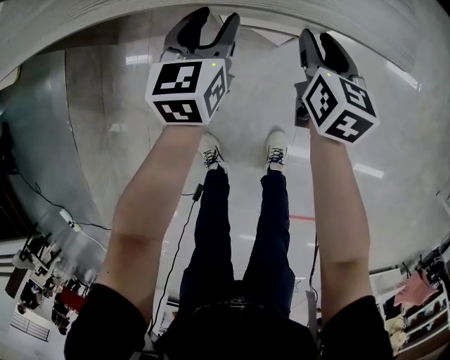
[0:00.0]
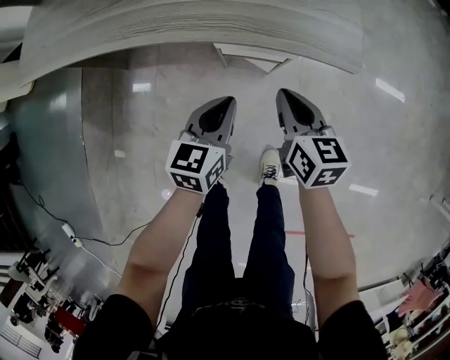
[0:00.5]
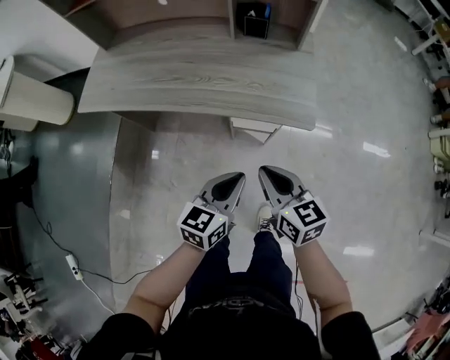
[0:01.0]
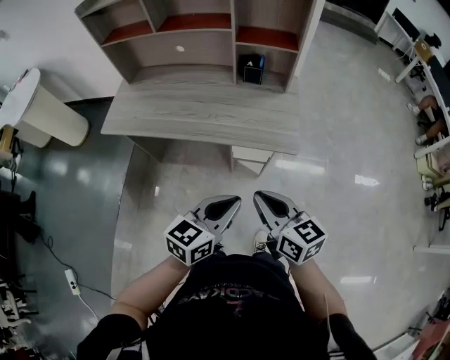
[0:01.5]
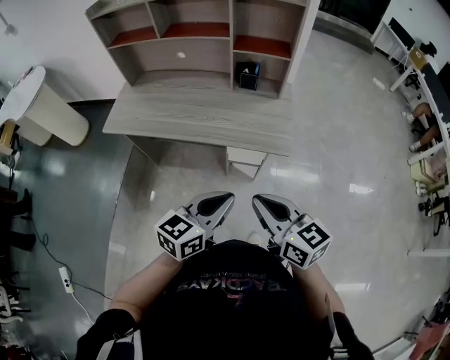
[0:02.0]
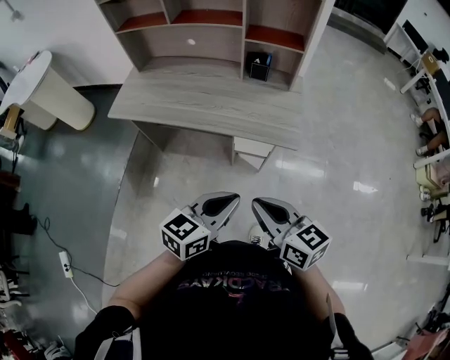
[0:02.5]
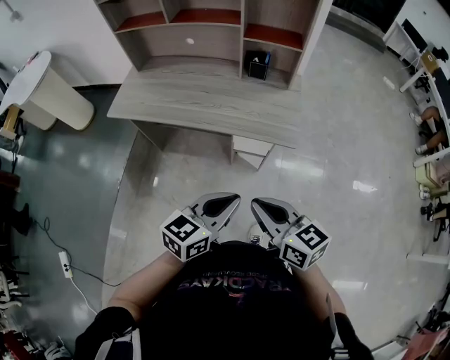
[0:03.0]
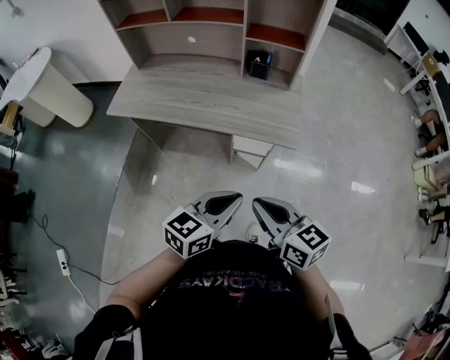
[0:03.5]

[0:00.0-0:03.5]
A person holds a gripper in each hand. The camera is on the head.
0:00.0 to 0:02.0: Both grippers move upward and backward, roughly 35 cm. The right gripper swivels approximately 40 degrees, and closes up. Meanwhile the left gripper swivels approximately 30 degrees, and closes.
0:02.0 to 0:03.5: The grippers make only small movements.

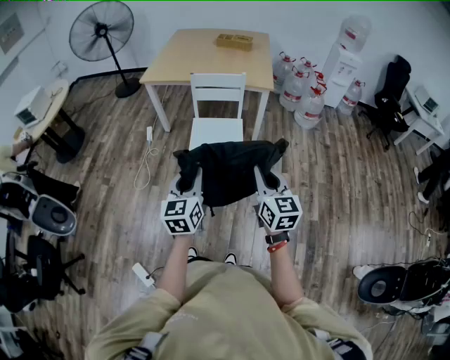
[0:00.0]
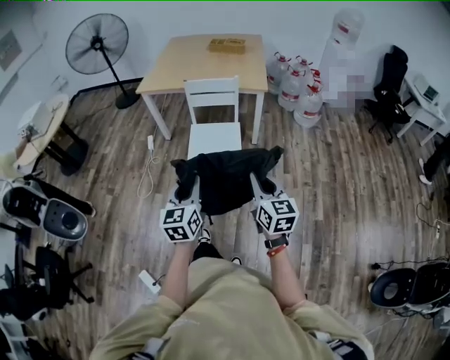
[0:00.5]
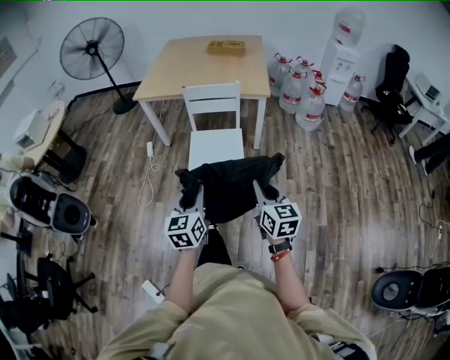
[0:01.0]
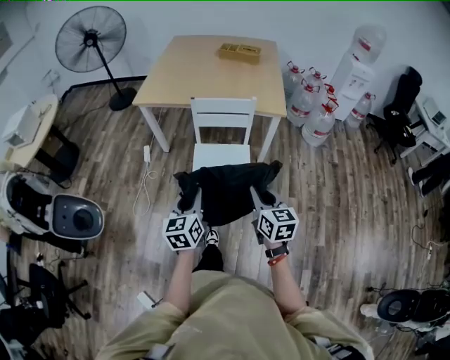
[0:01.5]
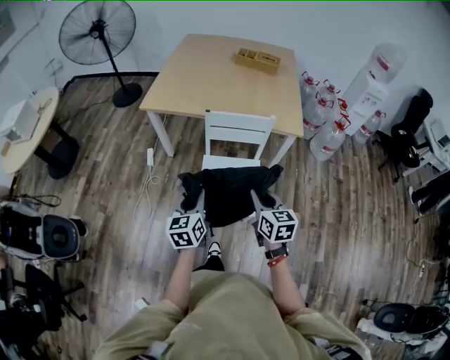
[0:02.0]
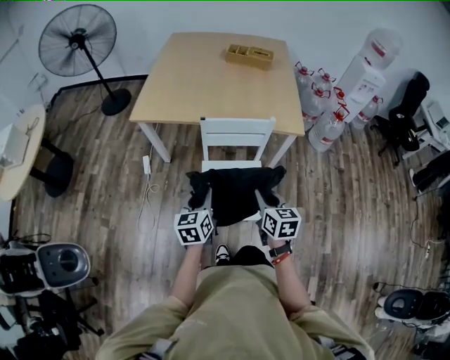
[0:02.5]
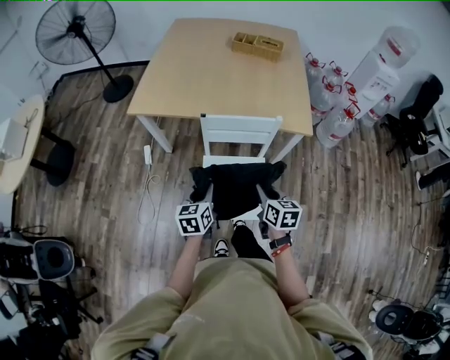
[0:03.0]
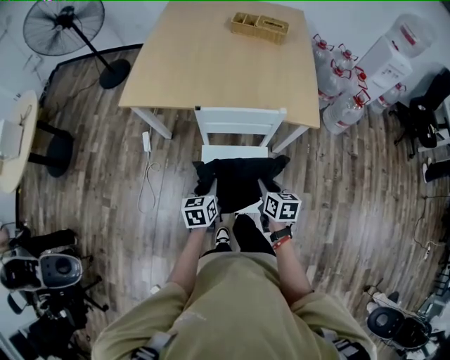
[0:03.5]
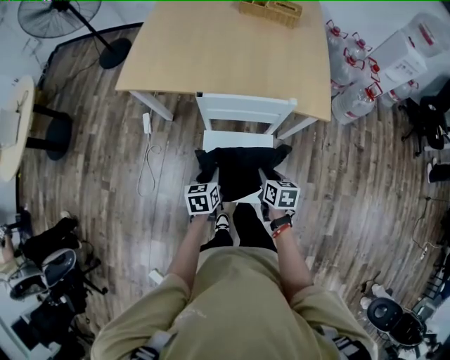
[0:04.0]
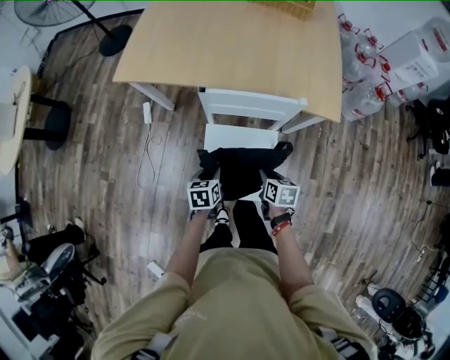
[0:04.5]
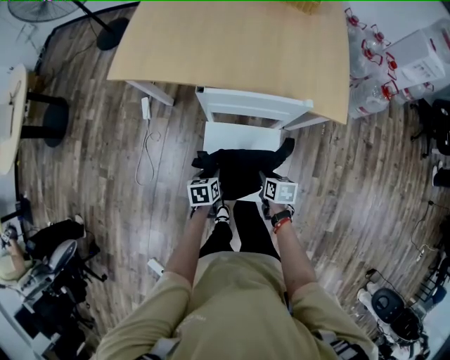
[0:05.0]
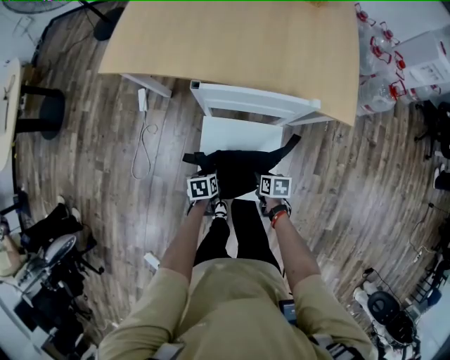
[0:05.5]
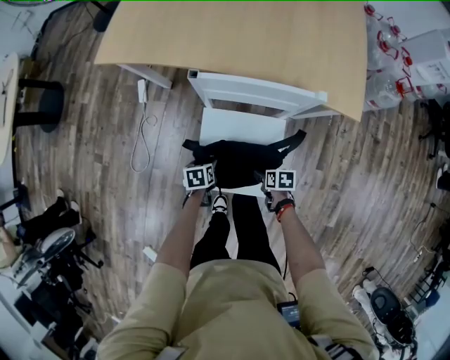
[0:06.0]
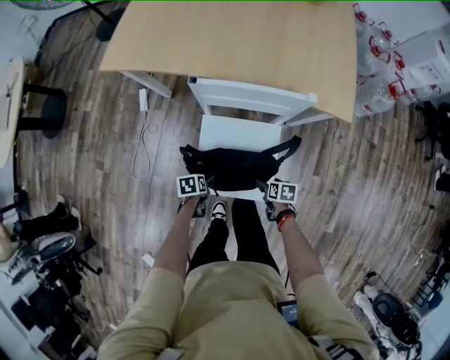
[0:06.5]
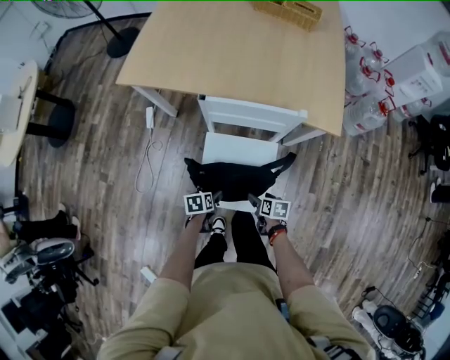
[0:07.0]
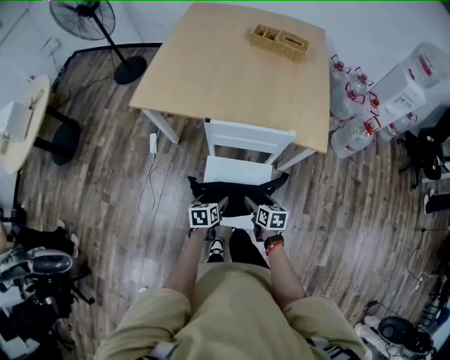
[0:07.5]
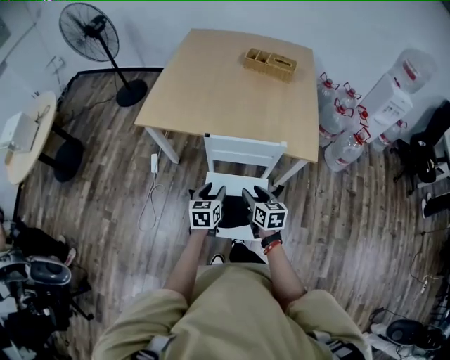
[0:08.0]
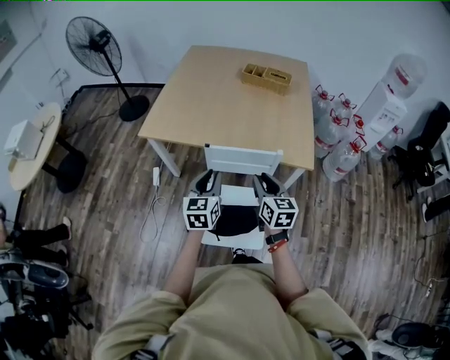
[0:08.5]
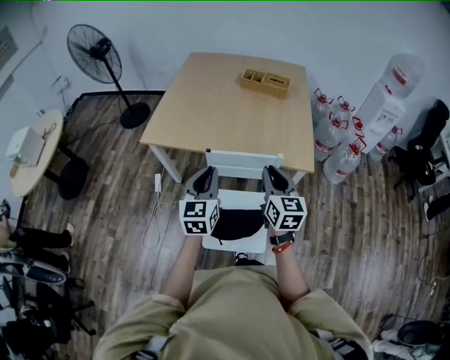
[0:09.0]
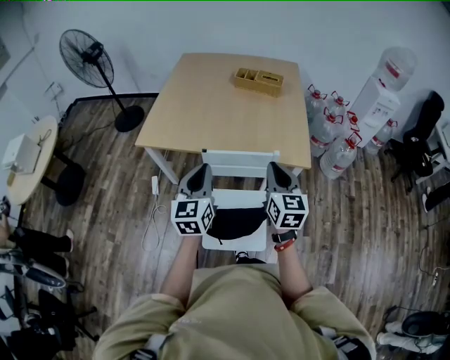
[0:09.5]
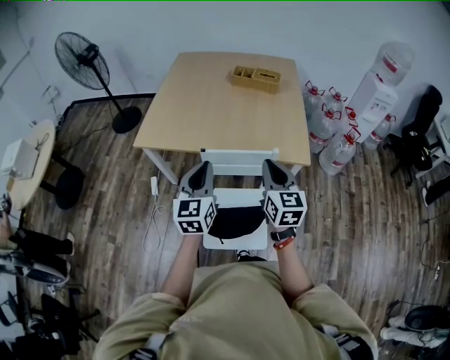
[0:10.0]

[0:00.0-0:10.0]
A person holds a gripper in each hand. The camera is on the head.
0:00.0 to 0:02.0: Both grippers move forward, about 35 cm.
0:02.0 to 0:04.0: The right gripper heads downward and forward, covering approximately 30 cm, and turns by some 30 degrees, while the left gripper is displaced forward and downward by about 30 cm, and swivels about 30 degrees.
0:04.0 to 0:06.0: The two grippers go approximately 25 cm downward. The right gripper changes its angle by approximately 30 degrees, and opens up. The left gripper swivels some 30 degrees, and opens.
0:06.0 to 0:08.0: Both grippers move upward, approximately 30 cm. The left gripper tips its fingers upward by roughly 40 degrees, and opens, then closes again. Meanwhile the right gripper angles its fingers upward, by approximately 30 degrees.
0:08.0 to 0:10.0: Both grippers move upward, about 25 cm. The left gripper changes its angle by roughly 30 degrees, and closes its fingers. Meanwhile the right gripper rotates some 30 degrees, and closes its fingers.

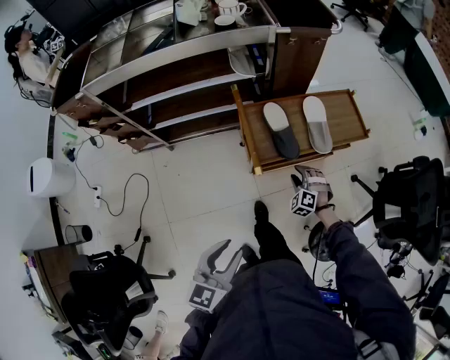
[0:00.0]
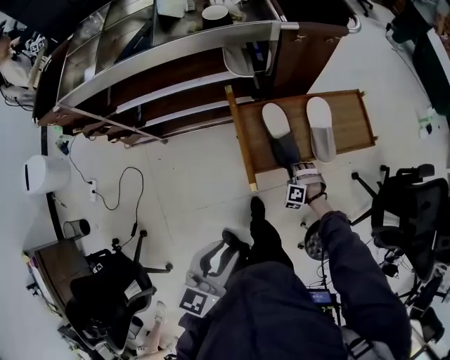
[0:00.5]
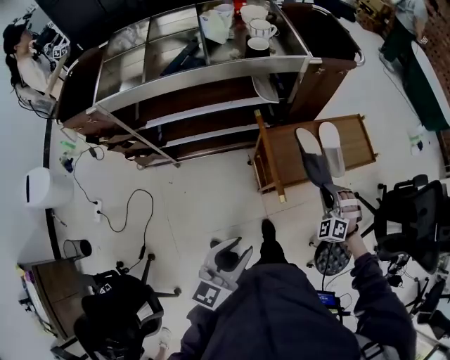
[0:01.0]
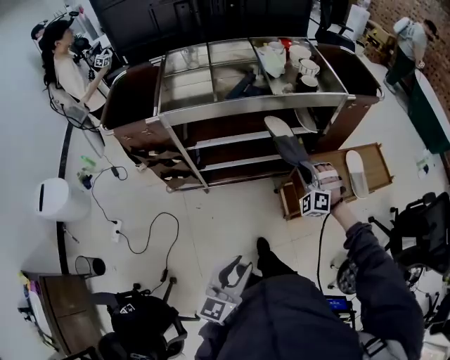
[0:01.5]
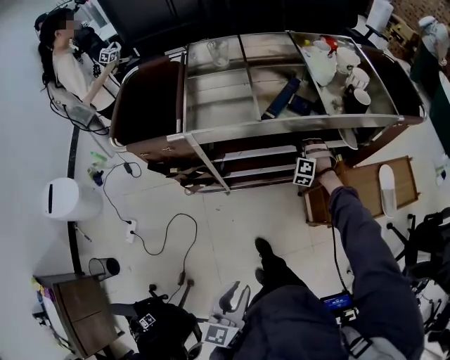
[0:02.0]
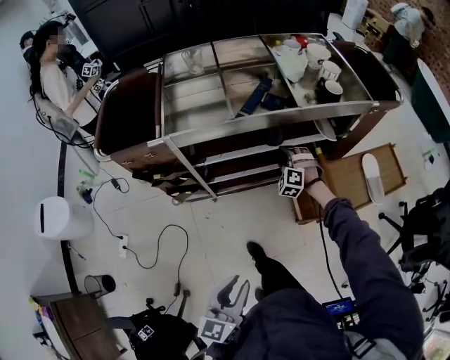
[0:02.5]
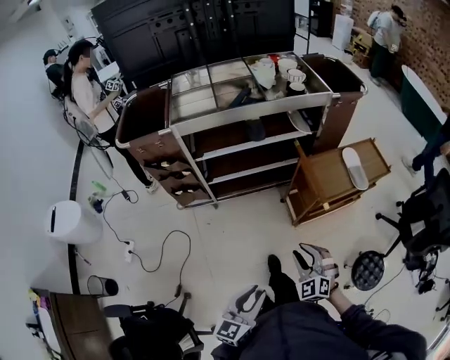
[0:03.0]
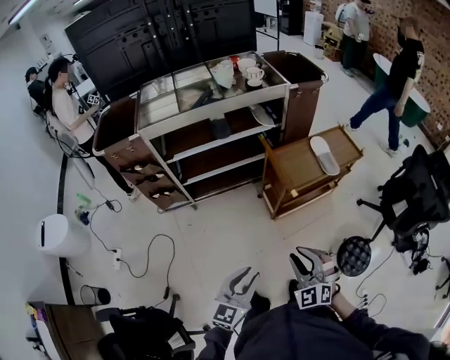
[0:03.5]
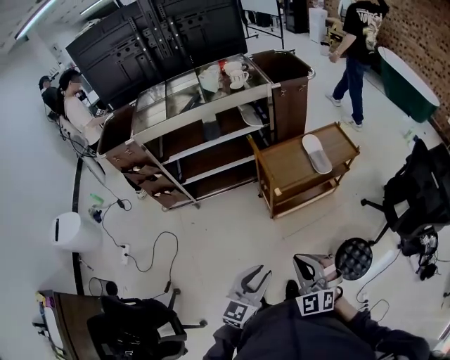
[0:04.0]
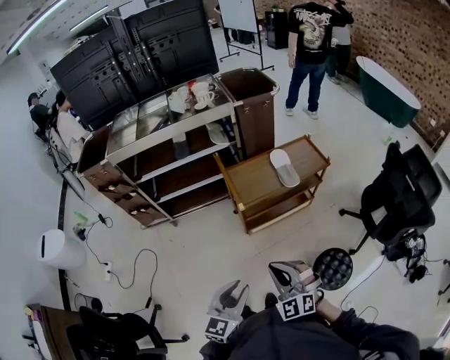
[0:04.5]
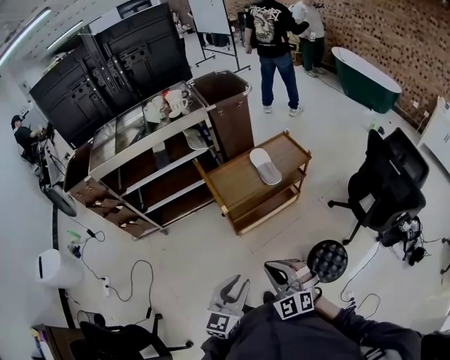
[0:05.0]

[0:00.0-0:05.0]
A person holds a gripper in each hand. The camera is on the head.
0:00.0 to 0:02.5: The two grippers travel together, to the left, some 50 cm. The right gripper closes and opens again.
0:02.5 to 0:05.0: The pair of grippers is taken to the right and backward, roughly 60 cm. The right gripper swivels some 40 degrees, and closes its fingers, while the left gripper rotates about 30 degrees.

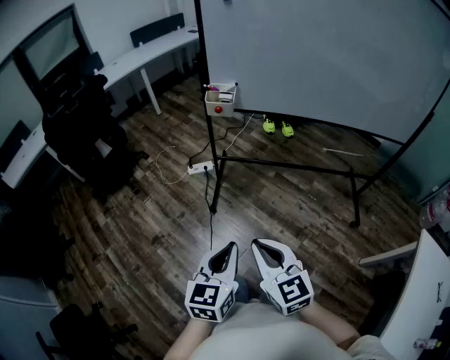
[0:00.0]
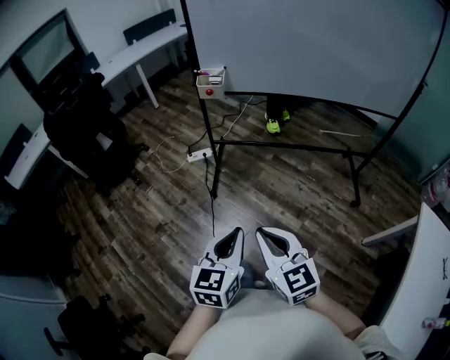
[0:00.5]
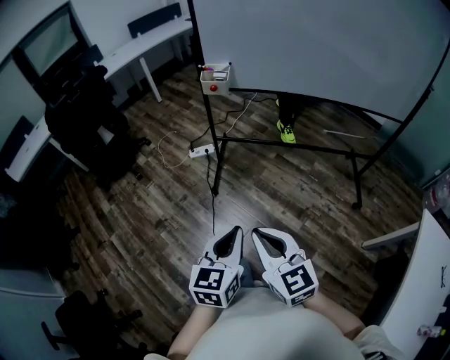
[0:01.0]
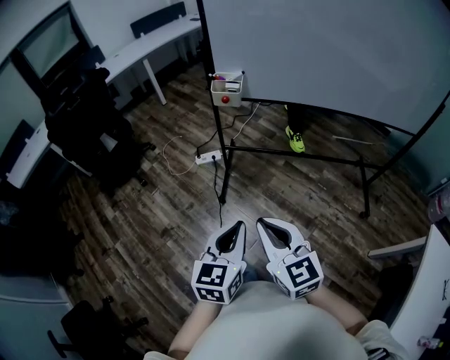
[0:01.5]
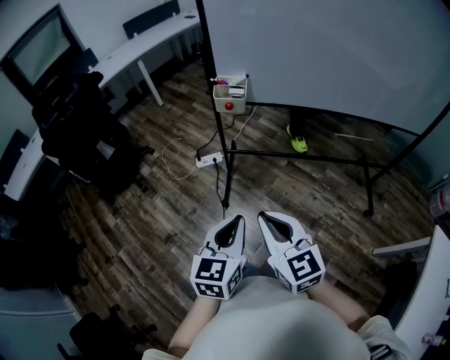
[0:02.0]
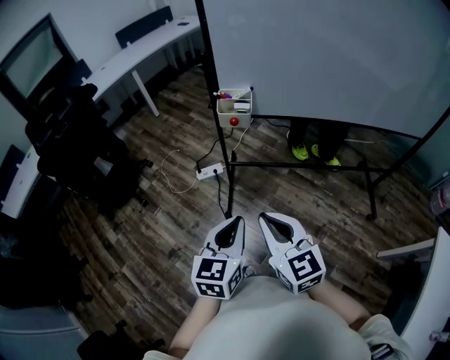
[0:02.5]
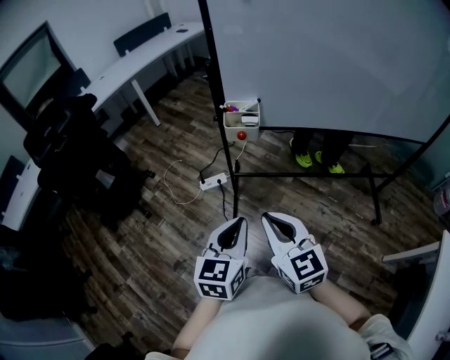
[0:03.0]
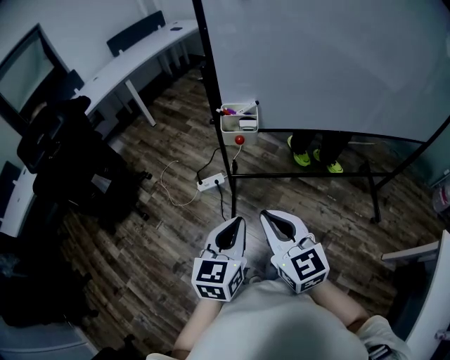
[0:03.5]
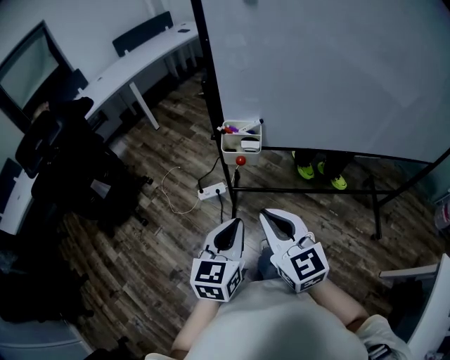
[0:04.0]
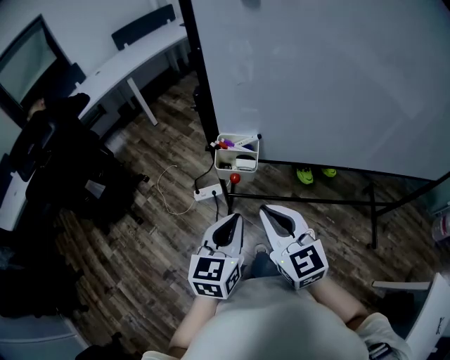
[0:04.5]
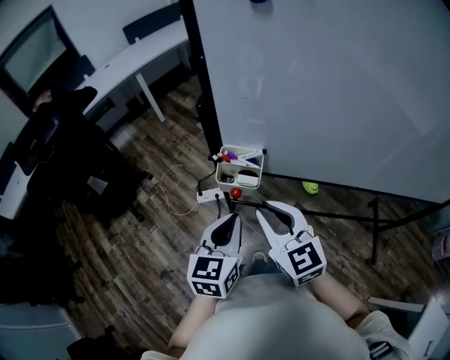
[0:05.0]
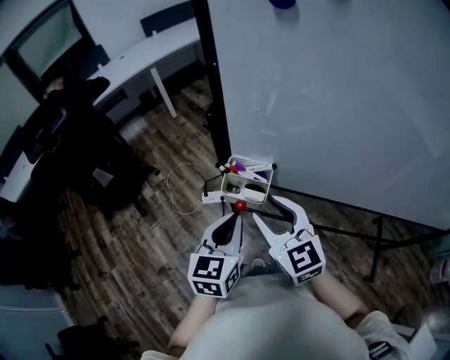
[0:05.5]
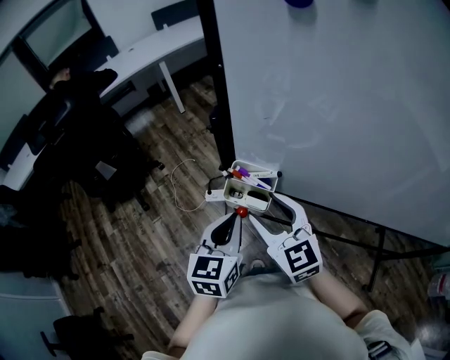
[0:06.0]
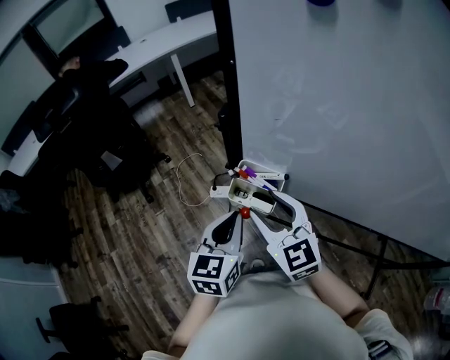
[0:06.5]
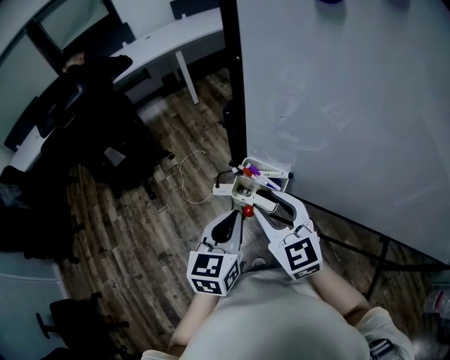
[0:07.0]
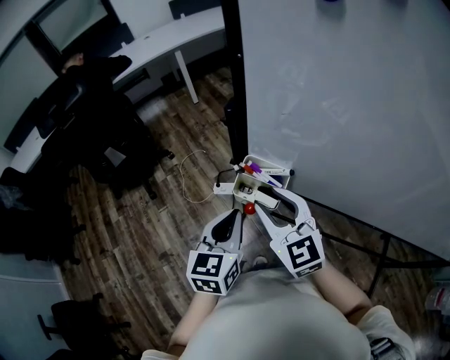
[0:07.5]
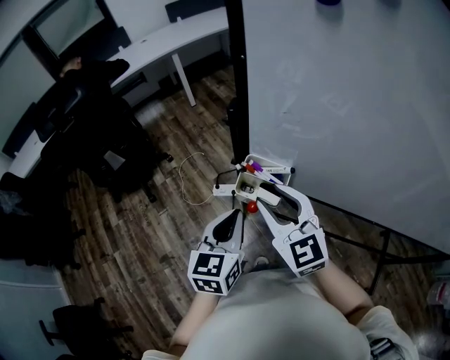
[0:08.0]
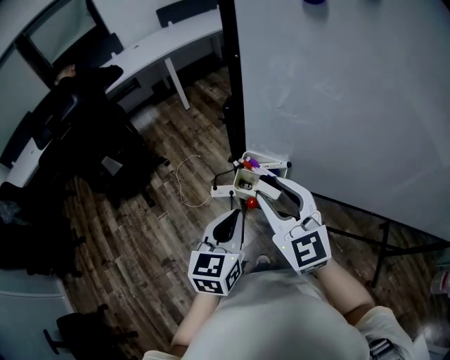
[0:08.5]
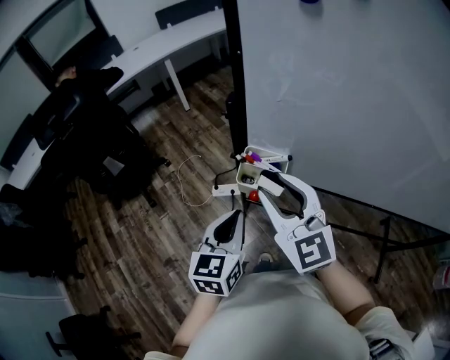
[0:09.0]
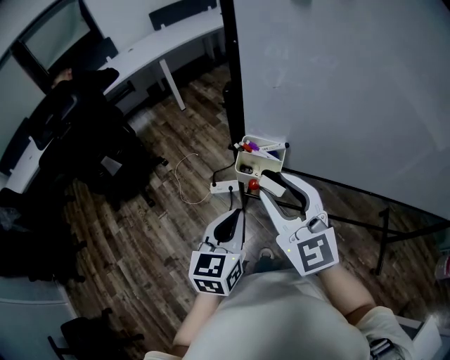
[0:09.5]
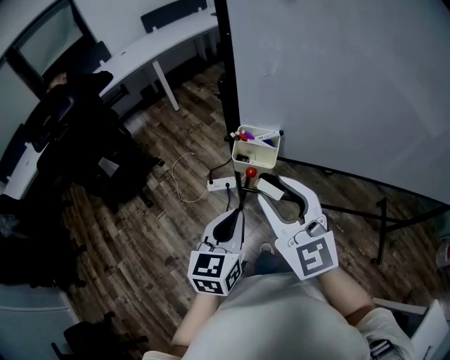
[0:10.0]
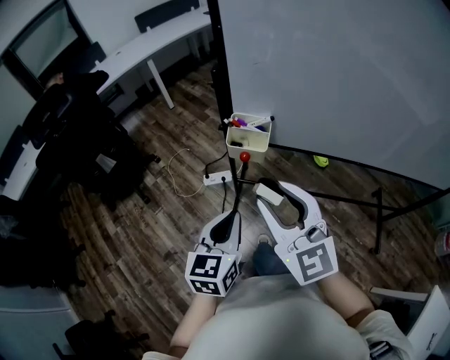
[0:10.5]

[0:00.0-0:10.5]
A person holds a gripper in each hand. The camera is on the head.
0:00.0 to 0:02.0: The two grippers go some 15 cm forward.
0:02.0 to 0:04.0: Both grippers travel together forward, approximately 25 cm.
0:04.0 to 0:06.5: The grippers both shift forward by about 20 cm. The right gripper turns by roughly 20 degrees, and opens its fingers.
0:06.5 to 0:08.5: The right gripper goes approximately 5 cm upward.
0:08.5 to 0:10.5: Both grippers move backward, roughly 15 cm.
